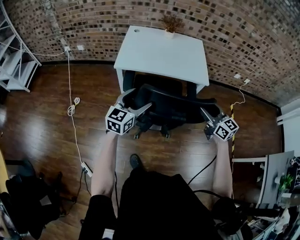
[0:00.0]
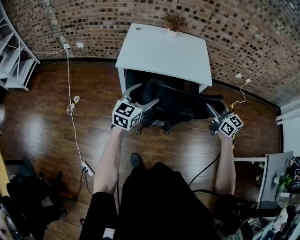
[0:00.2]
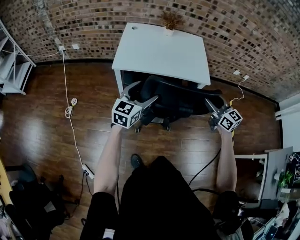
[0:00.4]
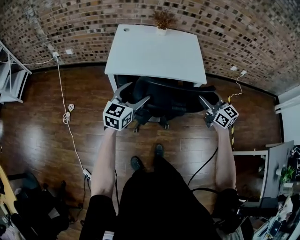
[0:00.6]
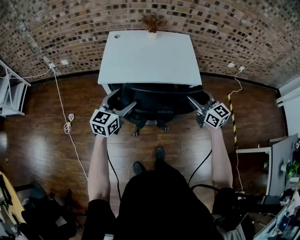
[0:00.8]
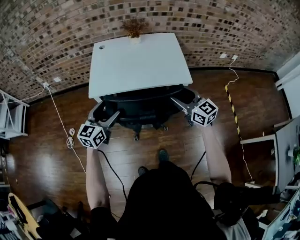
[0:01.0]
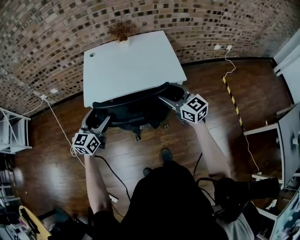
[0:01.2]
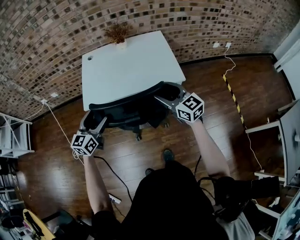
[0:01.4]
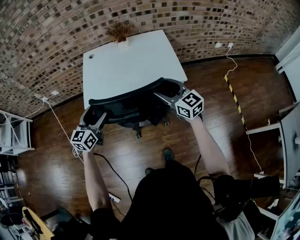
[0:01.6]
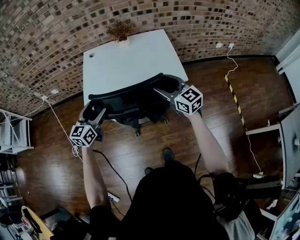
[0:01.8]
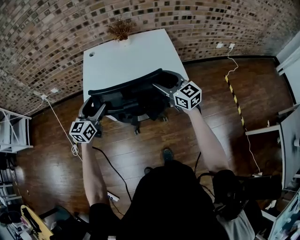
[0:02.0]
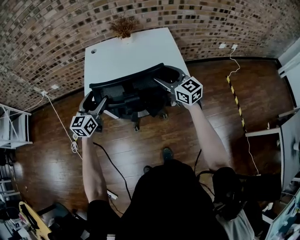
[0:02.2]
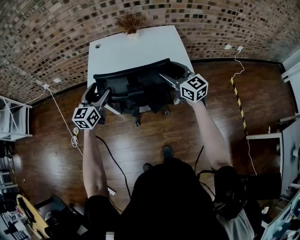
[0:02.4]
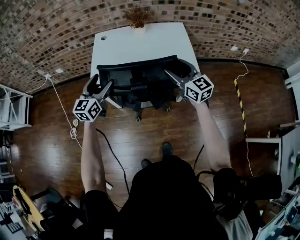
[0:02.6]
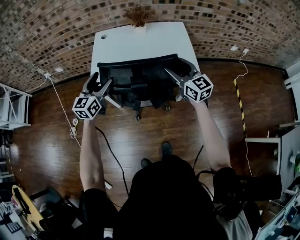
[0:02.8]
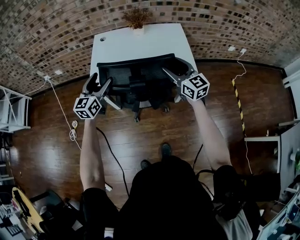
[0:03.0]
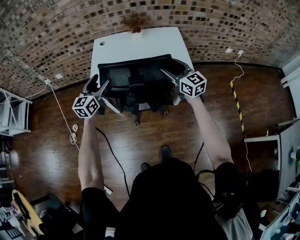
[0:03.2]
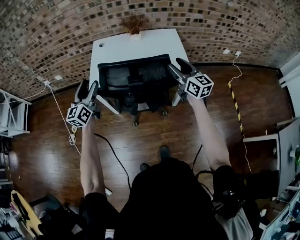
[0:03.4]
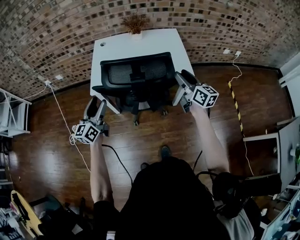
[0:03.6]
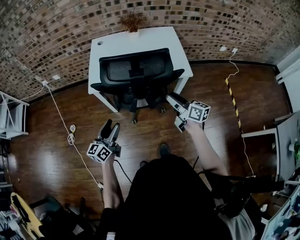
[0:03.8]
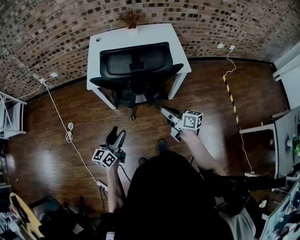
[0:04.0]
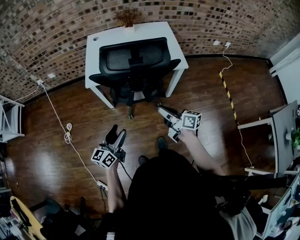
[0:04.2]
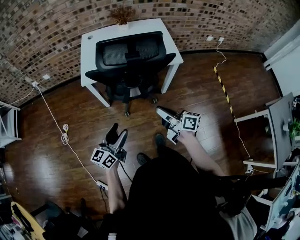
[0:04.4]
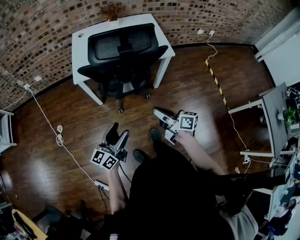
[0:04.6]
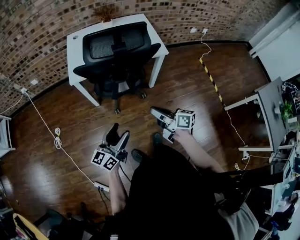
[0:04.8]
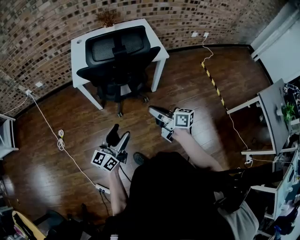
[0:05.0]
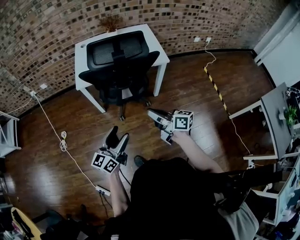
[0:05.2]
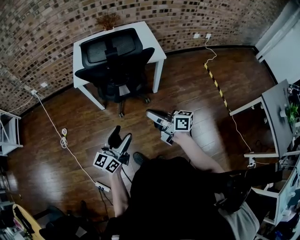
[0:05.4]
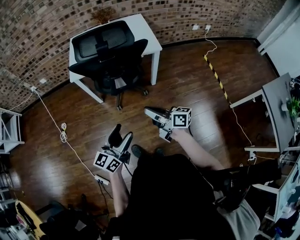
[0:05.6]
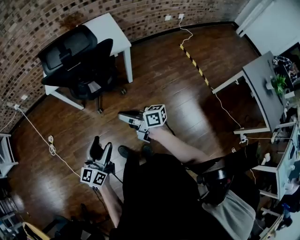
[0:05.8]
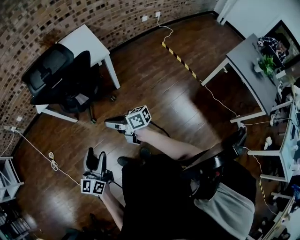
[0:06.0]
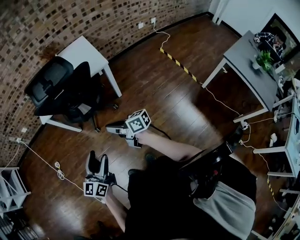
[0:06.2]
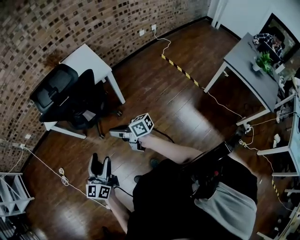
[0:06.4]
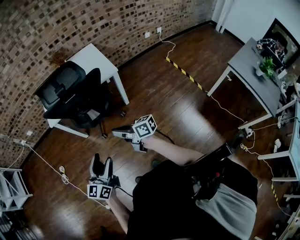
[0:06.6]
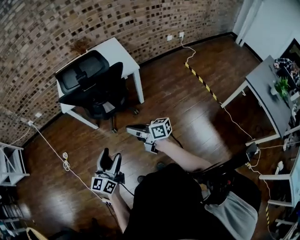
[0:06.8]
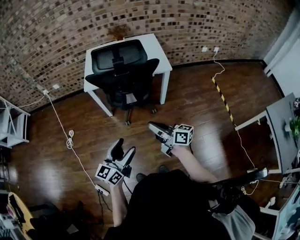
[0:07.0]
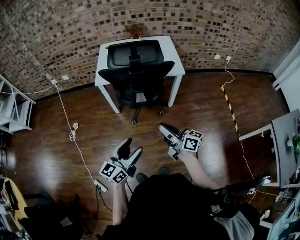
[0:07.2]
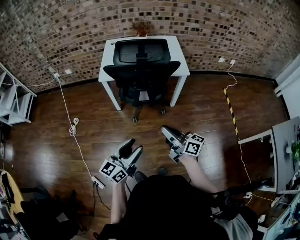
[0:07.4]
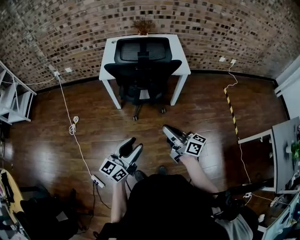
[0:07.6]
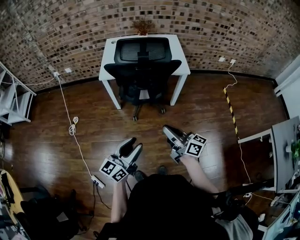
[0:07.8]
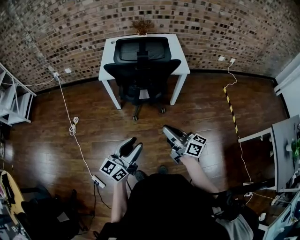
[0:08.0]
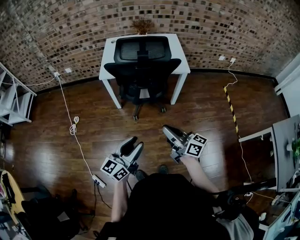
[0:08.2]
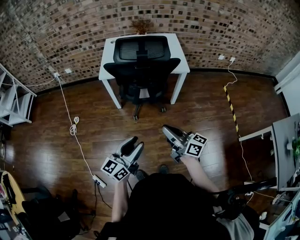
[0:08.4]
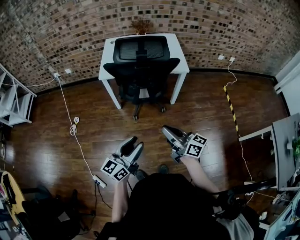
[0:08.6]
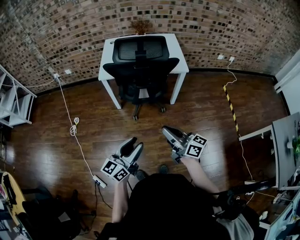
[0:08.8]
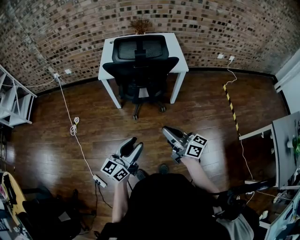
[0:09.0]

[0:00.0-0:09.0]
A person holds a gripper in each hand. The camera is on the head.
0:00.0 to 0:01.6: Both grippers travel together forward, roughly 20 cm.
0:01.6 to 0:03.0: The two grippers go some 10 cm forward.
0:03.0 to 0:04.4: The grippers both shift backward by about 30 cm. The left gripper swivels about 30 degrees, while the right gripper twists roughly 50 degrees clockwise, seen from behind, and closes.
0:04.4 to 0:06.0: The right gripper travels backward by roughly 15 cm. The left gripper shifts roughly 25 cm backward and to the right.
0:06.0 to 0:07.6: The right gripper heads upward, covering about 15 cm, while the left gripper moves upward and to the left, roughly 15 cm.
0:07.6 to 0:09.0: The grippers stay close to where they were, moving slightly.

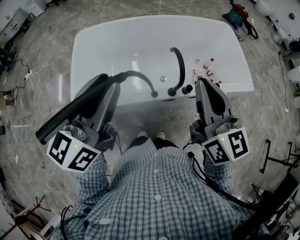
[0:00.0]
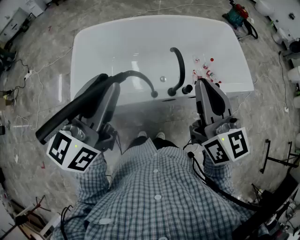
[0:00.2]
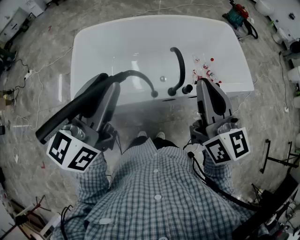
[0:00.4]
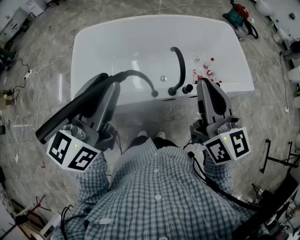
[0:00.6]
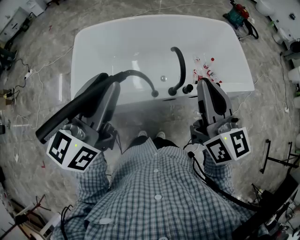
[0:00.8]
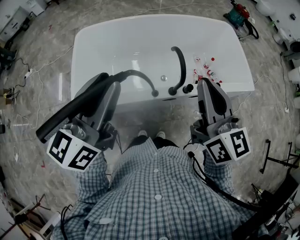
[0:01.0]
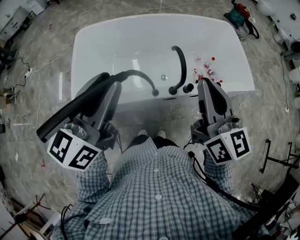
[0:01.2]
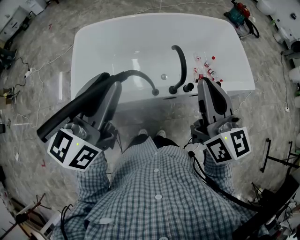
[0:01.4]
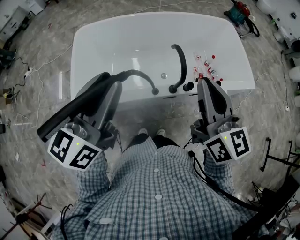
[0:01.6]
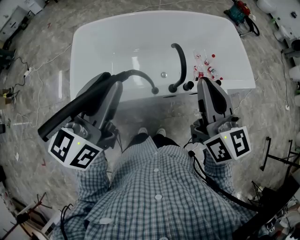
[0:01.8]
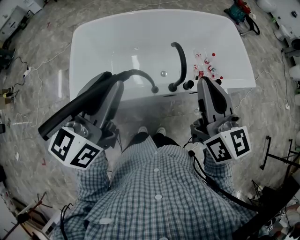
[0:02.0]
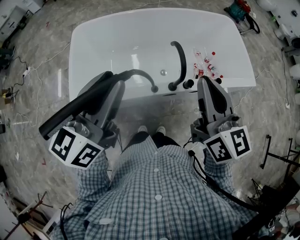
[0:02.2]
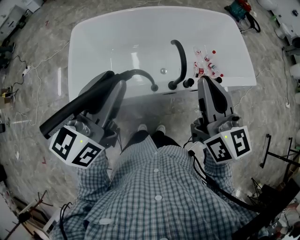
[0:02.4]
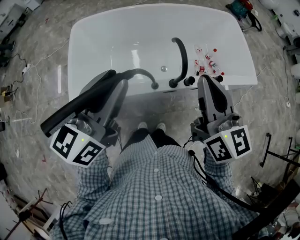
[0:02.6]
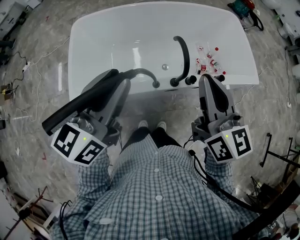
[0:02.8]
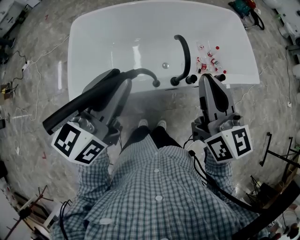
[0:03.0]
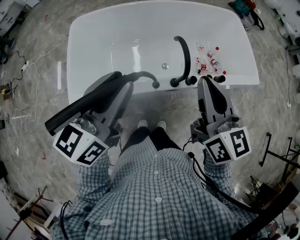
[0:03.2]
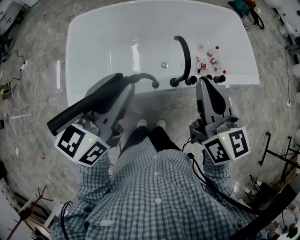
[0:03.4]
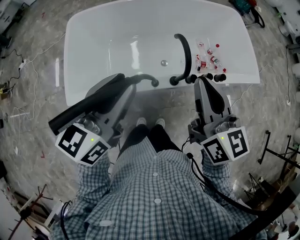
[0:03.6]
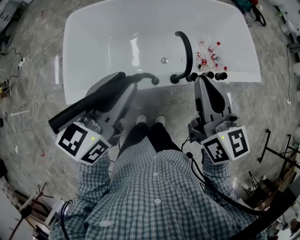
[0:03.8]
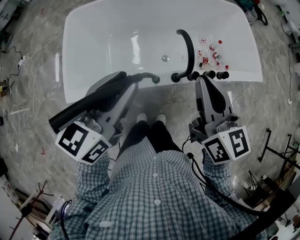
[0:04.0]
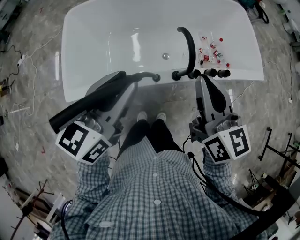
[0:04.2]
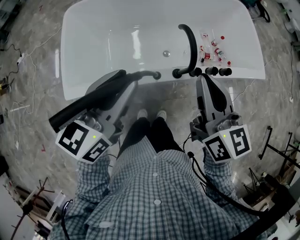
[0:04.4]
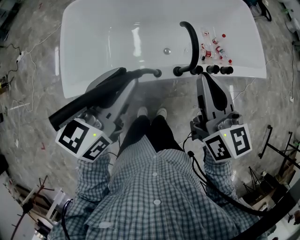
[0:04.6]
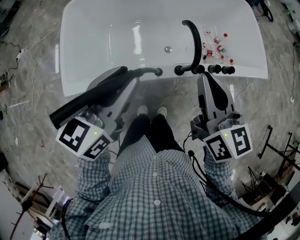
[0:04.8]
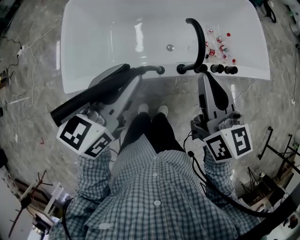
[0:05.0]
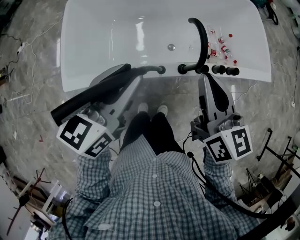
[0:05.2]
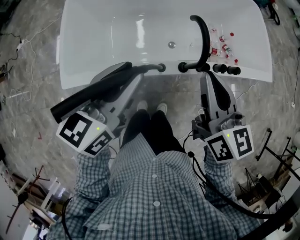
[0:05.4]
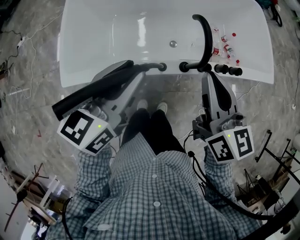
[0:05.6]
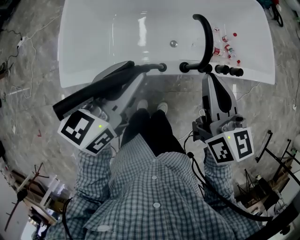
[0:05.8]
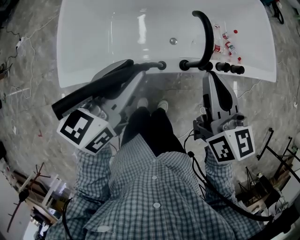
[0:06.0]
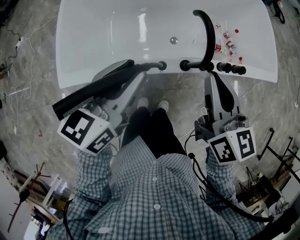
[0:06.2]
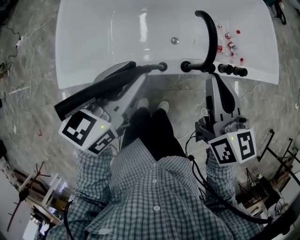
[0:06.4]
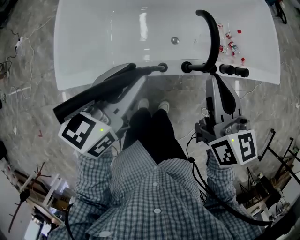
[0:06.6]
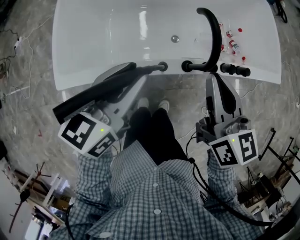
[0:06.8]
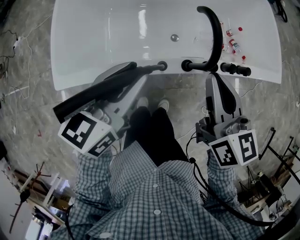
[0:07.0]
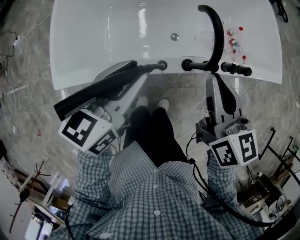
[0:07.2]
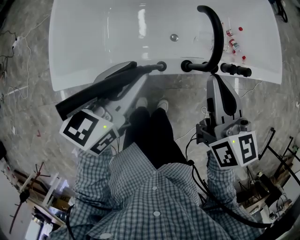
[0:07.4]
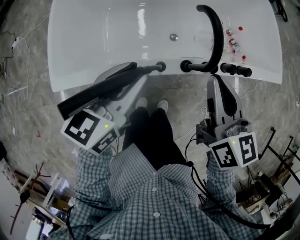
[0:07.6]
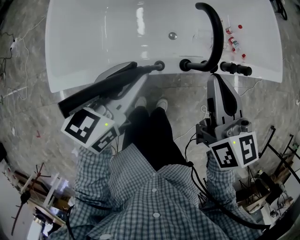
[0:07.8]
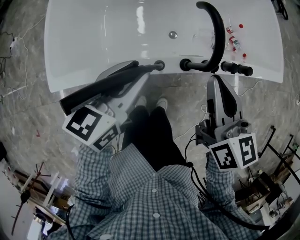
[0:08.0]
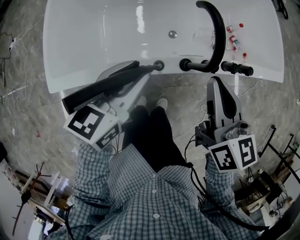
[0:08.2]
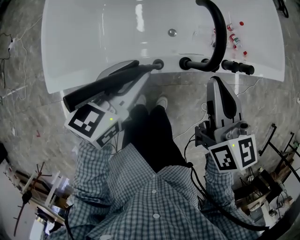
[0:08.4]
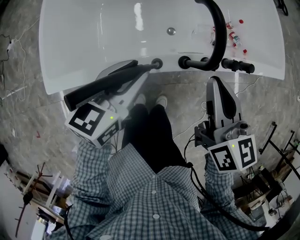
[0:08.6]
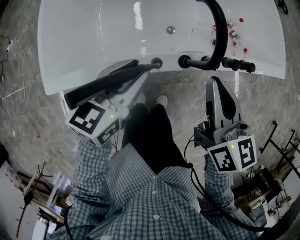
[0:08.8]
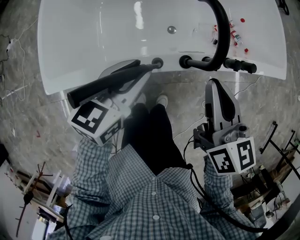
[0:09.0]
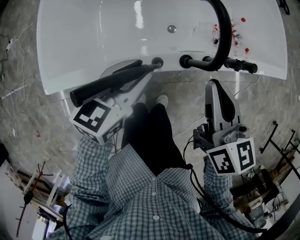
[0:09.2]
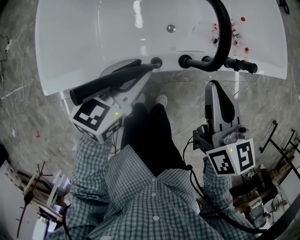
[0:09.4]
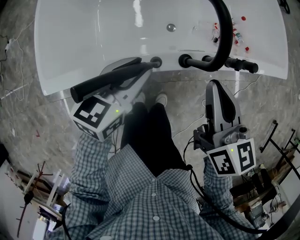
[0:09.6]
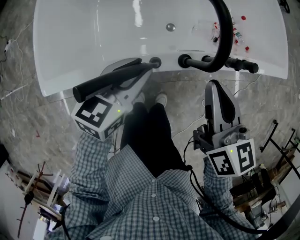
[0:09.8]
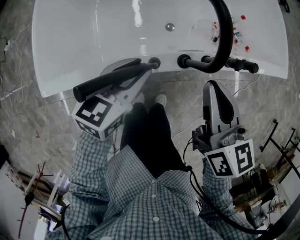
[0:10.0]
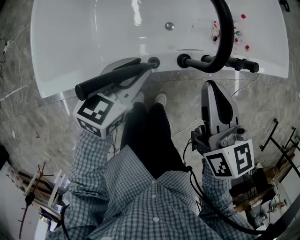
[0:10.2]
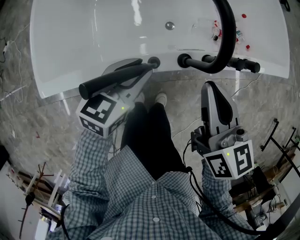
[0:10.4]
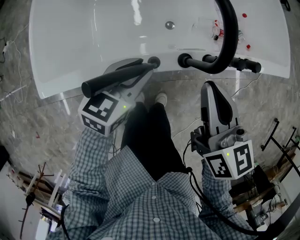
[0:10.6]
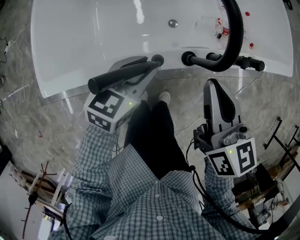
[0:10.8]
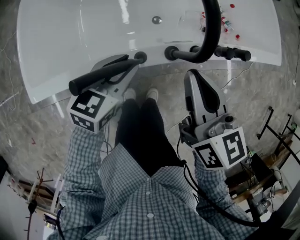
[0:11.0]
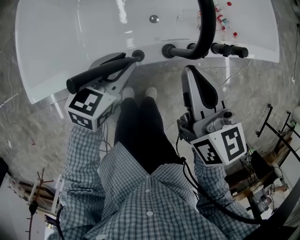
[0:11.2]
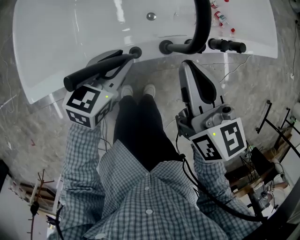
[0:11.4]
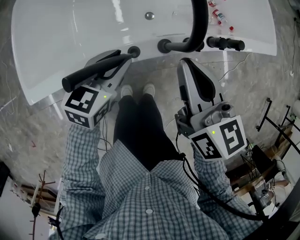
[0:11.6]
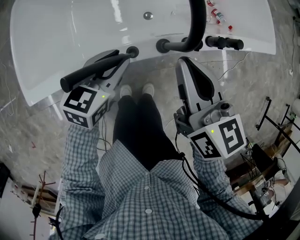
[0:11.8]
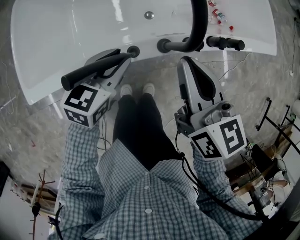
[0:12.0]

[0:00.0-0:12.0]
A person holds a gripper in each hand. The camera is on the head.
0:00.0 to 0:01.6: The two grippers keep their place.
0:01.6 to 0:03.0: The left gripper changes place by approximately 5 cm.
0:03.0 to 0:04.4: The grippers both shift downward by approximately 5 cm.
0:04.4 to 0:06.0: Both grippers move downward, some 5 cm.
0:06.0 to 0:07.6: The two grippers go approximately 5 cm downward.
0:07.6 to 0:09.0: The right gripper heads downward, covering approximately 5 cm. Meanwhile the left gripper goes some 10 cm downward.
0:09.0 to 0:10.4: The left gripper heads downward, covering roughly 5 cm.
0:10.4 to 0:12.0: There are only small adjustments of the grippers.

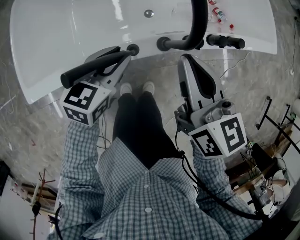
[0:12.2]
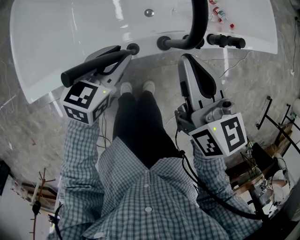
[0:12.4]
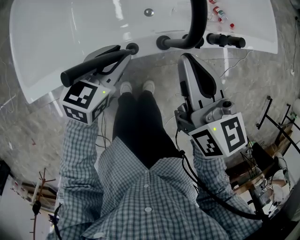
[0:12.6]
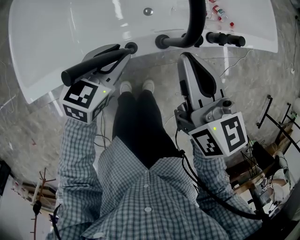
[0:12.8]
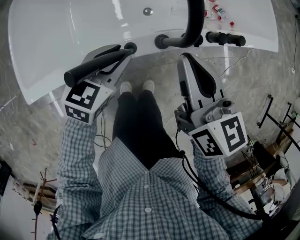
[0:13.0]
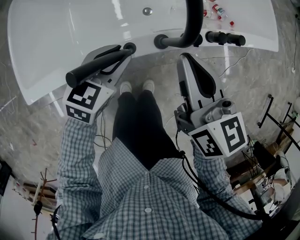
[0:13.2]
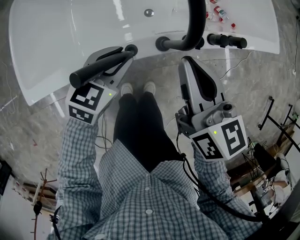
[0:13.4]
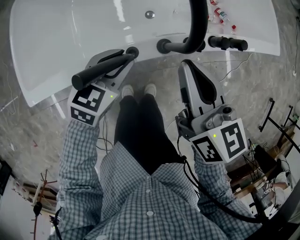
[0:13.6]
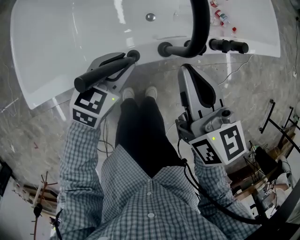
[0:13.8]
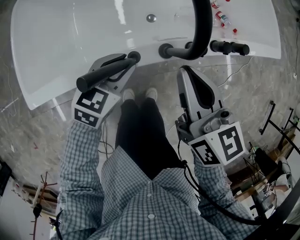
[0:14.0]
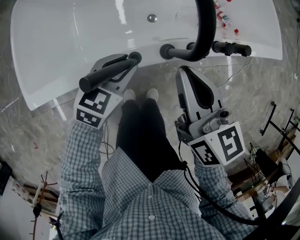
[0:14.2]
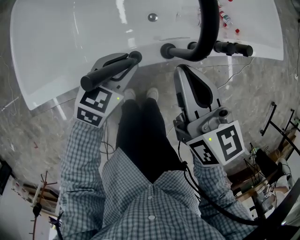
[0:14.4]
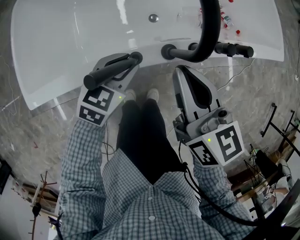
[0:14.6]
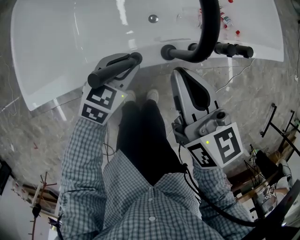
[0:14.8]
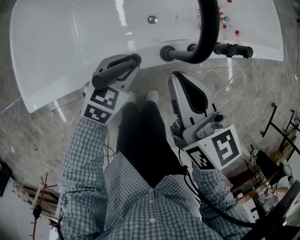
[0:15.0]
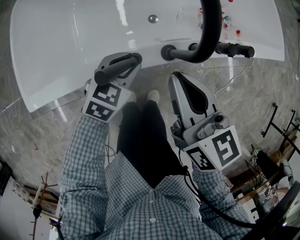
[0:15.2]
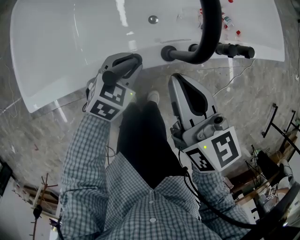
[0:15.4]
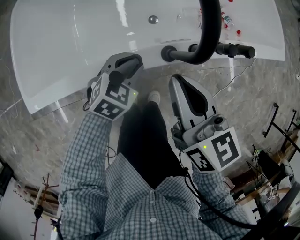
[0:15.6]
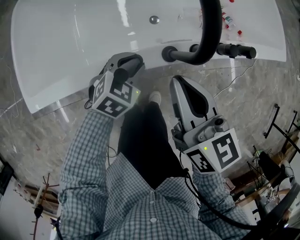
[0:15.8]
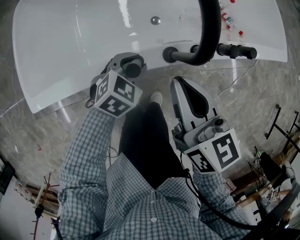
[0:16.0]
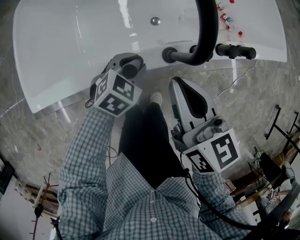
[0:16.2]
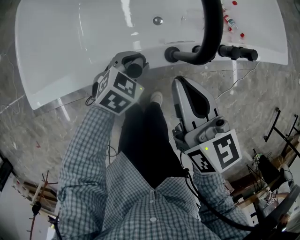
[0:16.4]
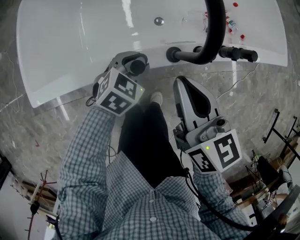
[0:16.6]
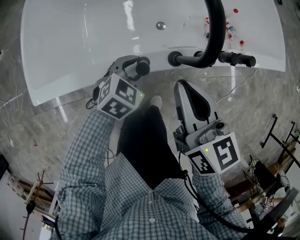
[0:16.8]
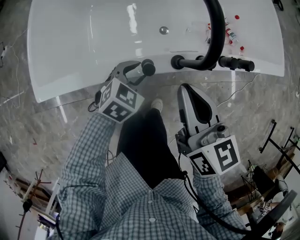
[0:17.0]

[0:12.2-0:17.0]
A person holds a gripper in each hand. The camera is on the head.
0:12.2 to 0:13.8: The grippers stay close to where they were, moving slightly.
0:13.8 to 0:15.4: The left gripper moves downward, about 5 cm.
0:15.4 to 0:17.0: The grippers stay close to where they were, moving slightly.
